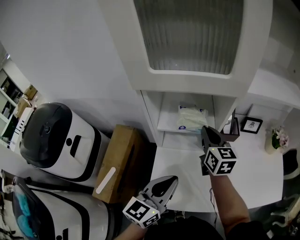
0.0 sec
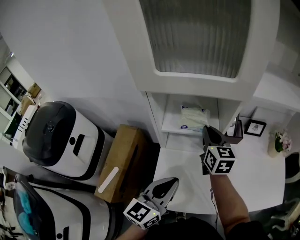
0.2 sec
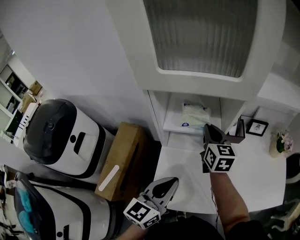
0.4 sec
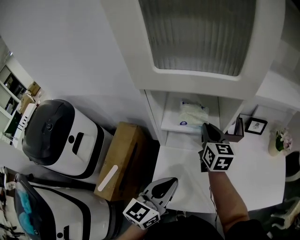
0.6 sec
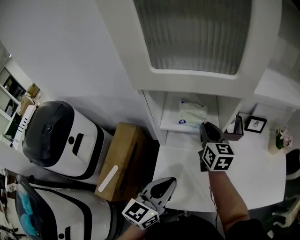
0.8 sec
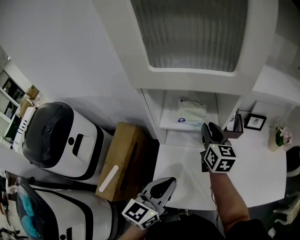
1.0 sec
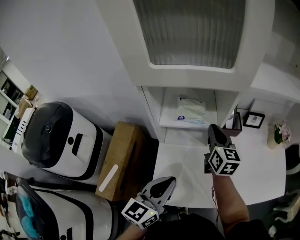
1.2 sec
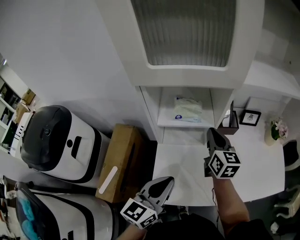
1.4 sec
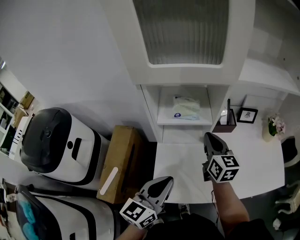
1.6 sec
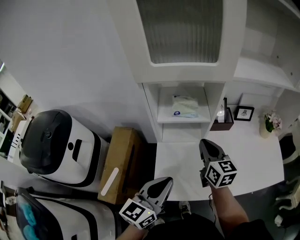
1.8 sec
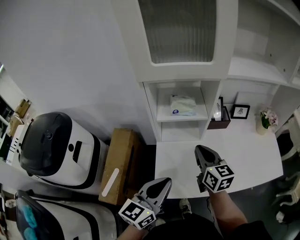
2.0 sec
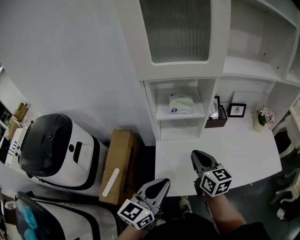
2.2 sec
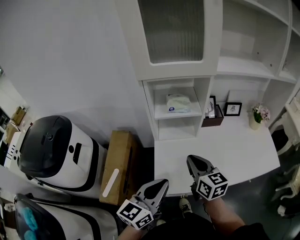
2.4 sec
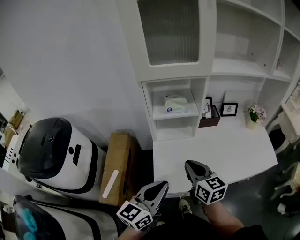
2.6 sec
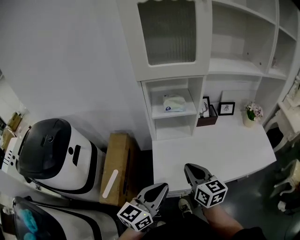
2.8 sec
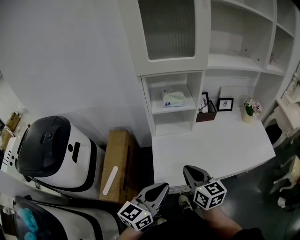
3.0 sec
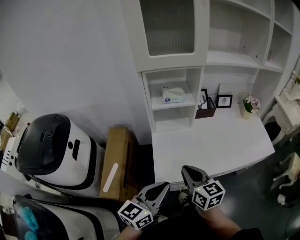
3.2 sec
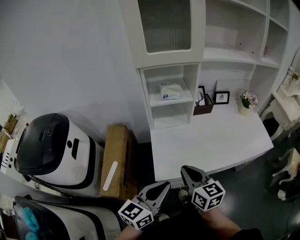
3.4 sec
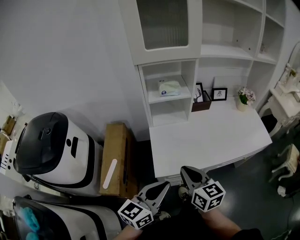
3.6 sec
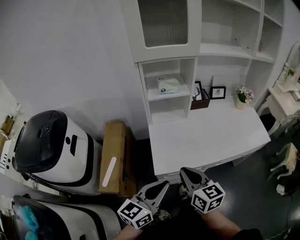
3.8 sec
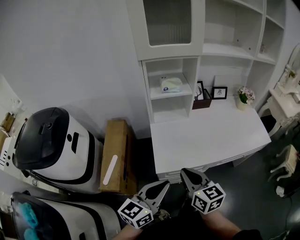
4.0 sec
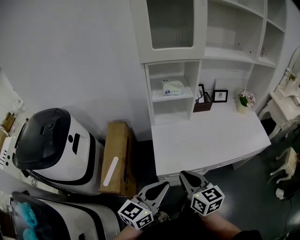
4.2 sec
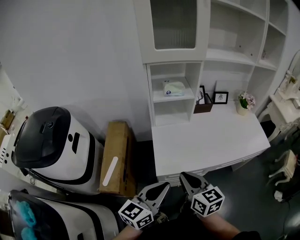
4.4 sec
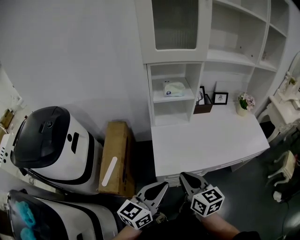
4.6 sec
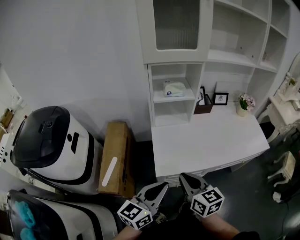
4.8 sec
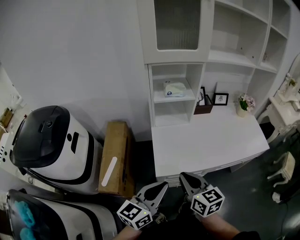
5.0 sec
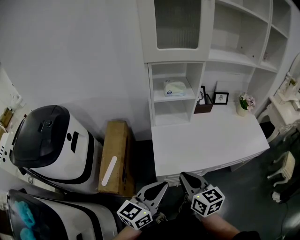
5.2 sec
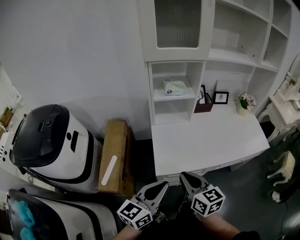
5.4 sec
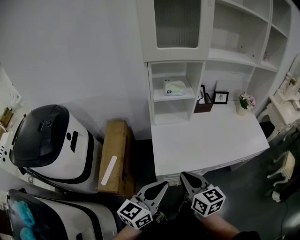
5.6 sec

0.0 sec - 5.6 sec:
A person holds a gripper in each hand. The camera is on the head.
0.0 sec - 1.4 sec: There are only small adjustments of the grippers.
1.4 sec - 2.8 sec: The right gripper moves backward, some 25 cm; the left gripper travels backward by approximately 15 cm.
2.8 sec - 4.2 sec: The two grippers go approximately 10 cm backward.
4.2 sec - 5.6 sec: Both grippers stay about where they are.

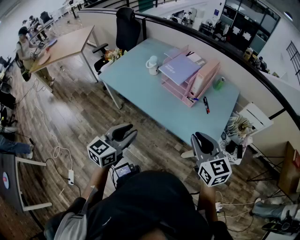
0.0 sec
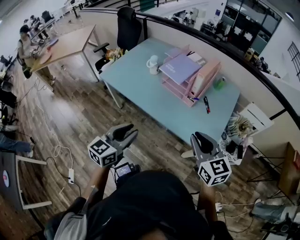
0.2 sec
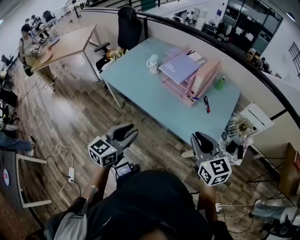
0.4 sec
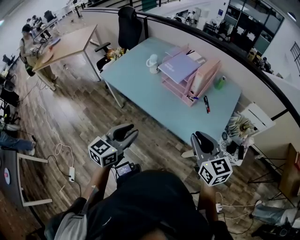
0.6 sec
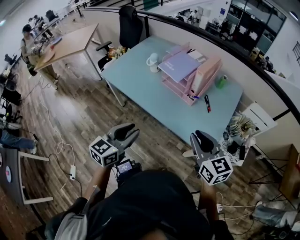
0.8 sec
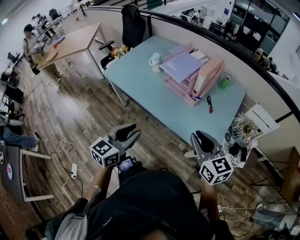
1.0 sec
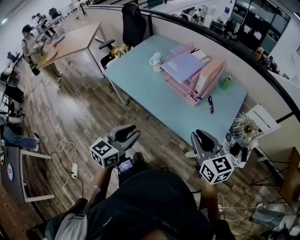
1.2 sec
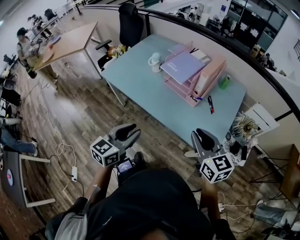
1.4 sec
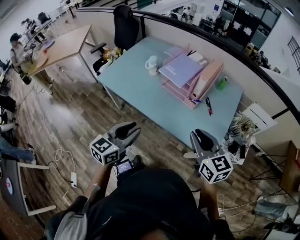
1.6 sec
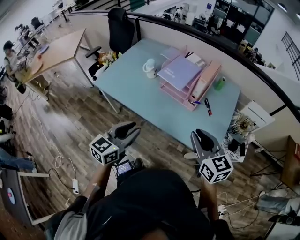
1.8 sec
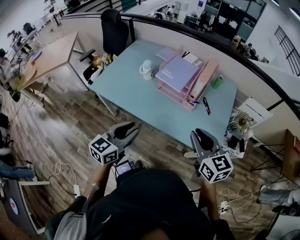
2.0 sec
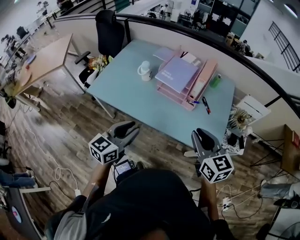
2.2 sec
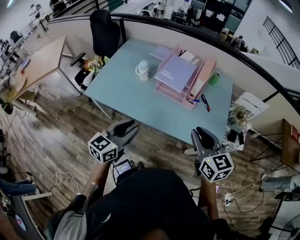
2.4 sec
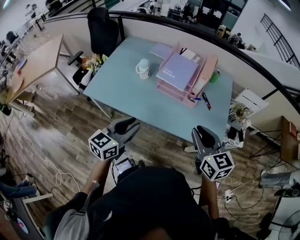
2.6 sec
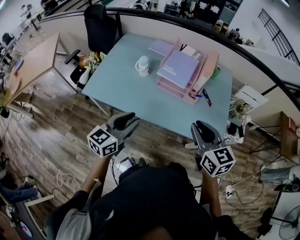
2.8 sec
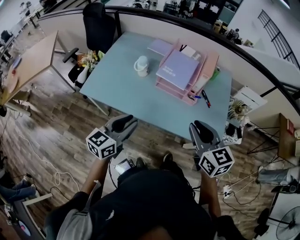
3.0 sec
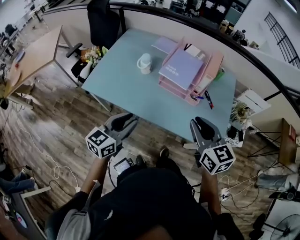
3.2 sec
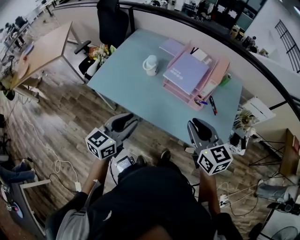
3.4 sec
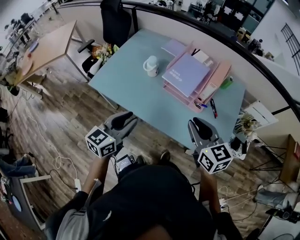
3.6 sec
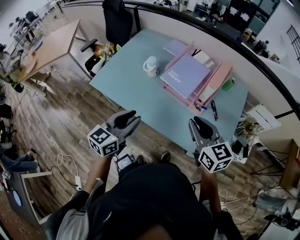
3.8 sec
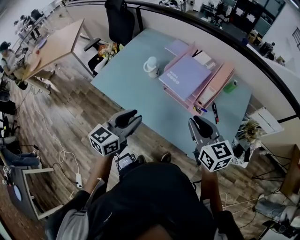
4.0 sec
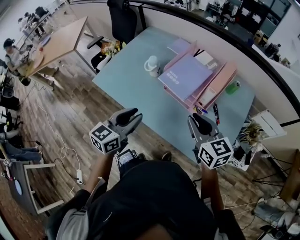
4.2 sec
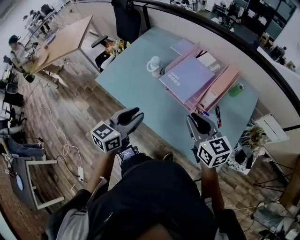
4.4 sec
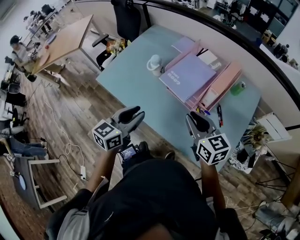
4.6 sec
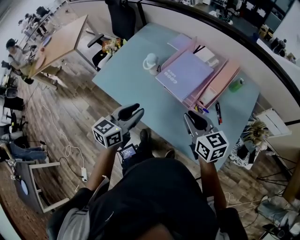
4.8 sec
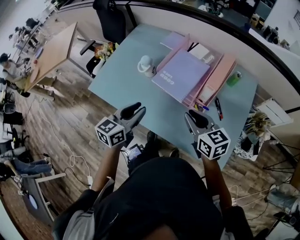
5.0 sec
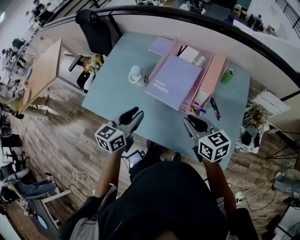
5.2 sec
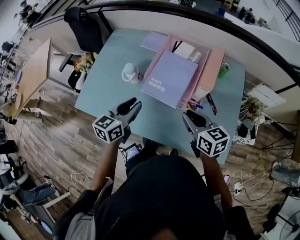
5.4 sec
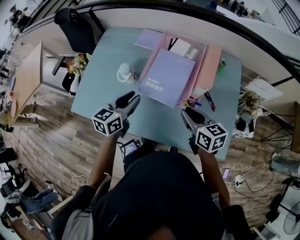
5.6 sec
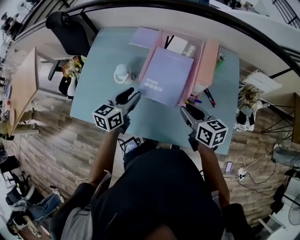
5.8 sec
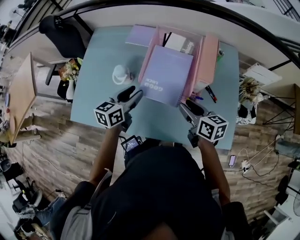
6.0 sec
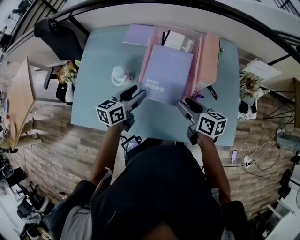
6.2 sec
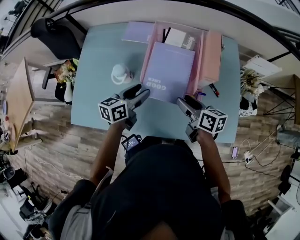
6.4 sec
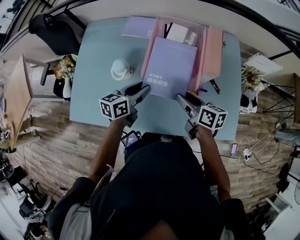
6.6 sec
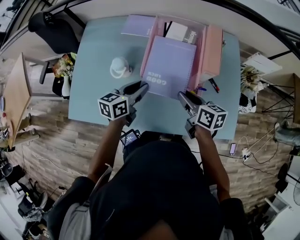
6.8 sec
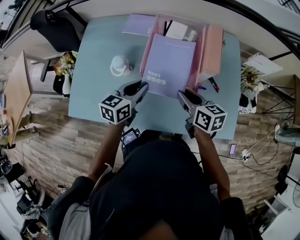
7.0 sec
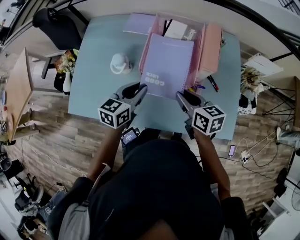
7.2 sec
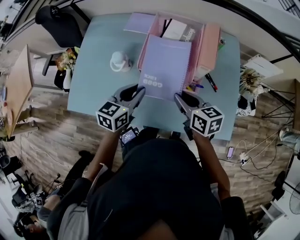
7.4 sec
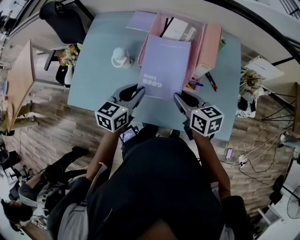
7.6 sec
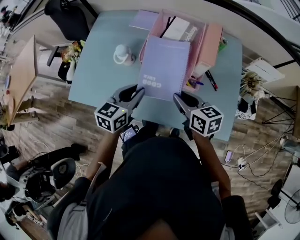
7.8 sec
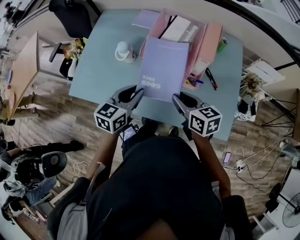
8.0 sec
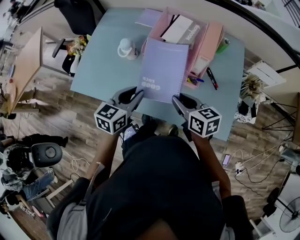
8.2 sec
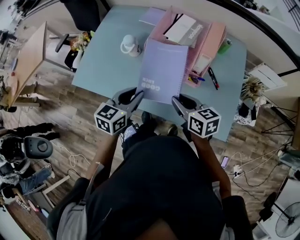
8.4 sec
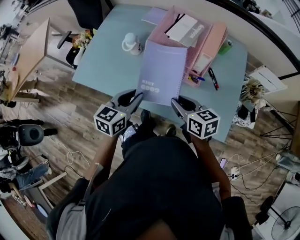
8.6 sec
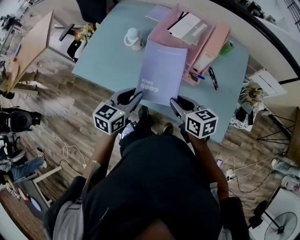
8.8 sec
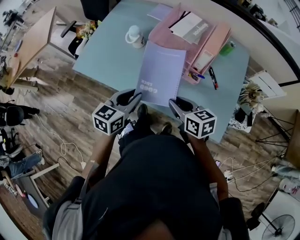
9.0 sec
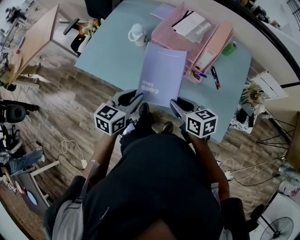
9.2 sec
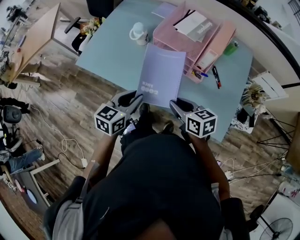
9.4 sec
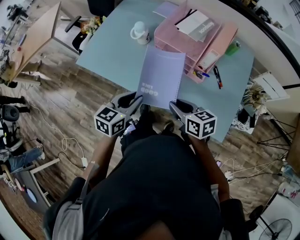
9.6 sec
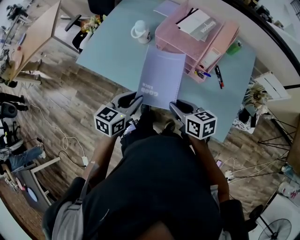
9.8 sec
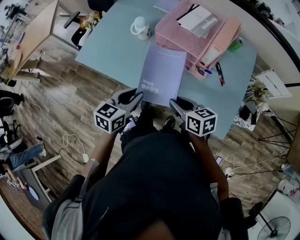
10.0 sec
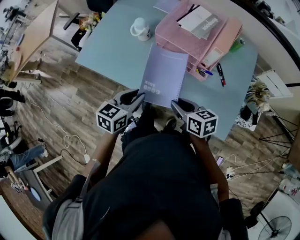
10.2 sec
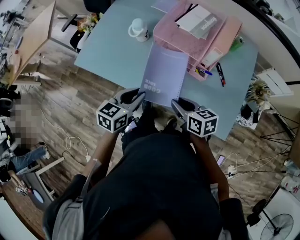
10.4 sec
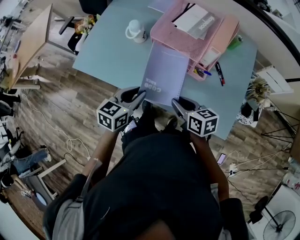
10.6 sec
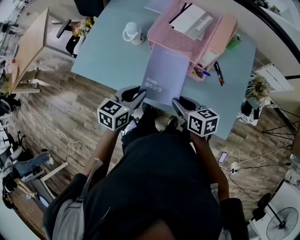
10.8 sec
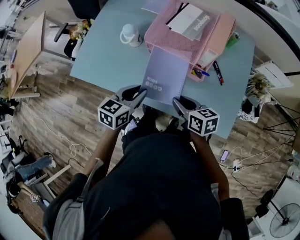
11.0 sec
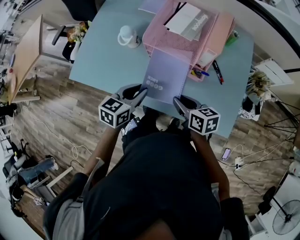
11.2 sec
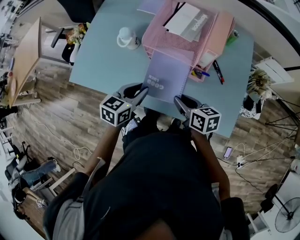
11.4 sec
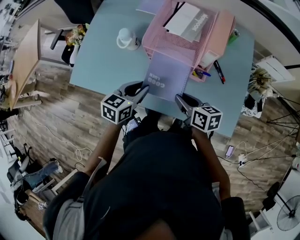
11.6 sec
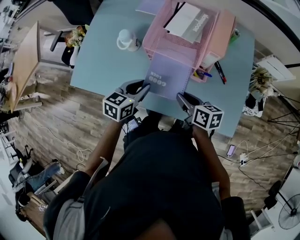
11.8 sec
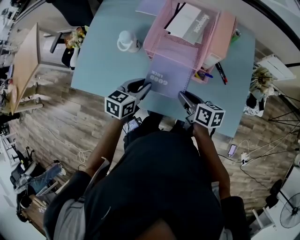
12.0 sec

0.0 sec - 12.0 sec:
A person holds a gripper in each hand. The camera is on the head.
0.0 sec - 1.6 sec: Both grippers travel together forward, some 5 cm.
1.6 sec - 3.0 sec: The left gripper goes some 15 cm to the left and forward. Meanwhile the right gripper heads to the left, covering roughly 10 cm.
3.0 sec - 4.4 sec: The right gripper shifts some 15 cm forward and to the right, and rotates approximately 20 degrees. Meanwhile the left gripper is displaced to the right and forward by some 10 cm.
4.4 sec - 6.0 sec: The right gripper travels downward and forward by approximately 15 cm, rotates about 40 degrees, and opens up. The left gripper travels forward and downward by roughly 25 cm, and changes its angle by some 20 degrees.
6.0 sec - 7.6 sec: The left gripper shifts some 5 cm backward.
7.6 sec - 9.0 sec: The two grippers go roughly 15 cm backward.
9.0 sec - 10.4 sec: There are only small adjustments of the grippers.
10.4 sec - 12.0 sec: Both grippers move forward, roughly 10 cm. The right gripper changes its angle by approximately 20 degrees.

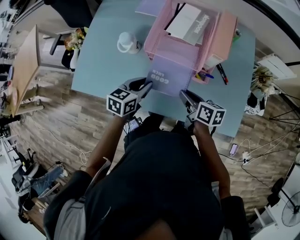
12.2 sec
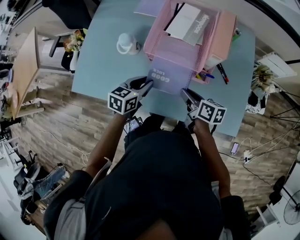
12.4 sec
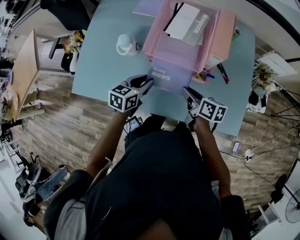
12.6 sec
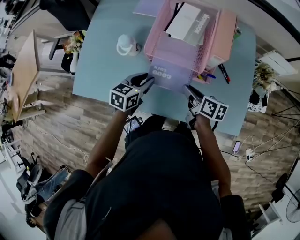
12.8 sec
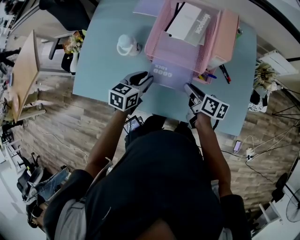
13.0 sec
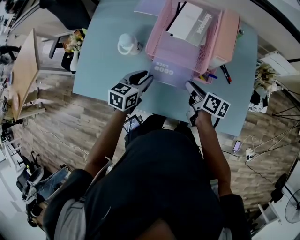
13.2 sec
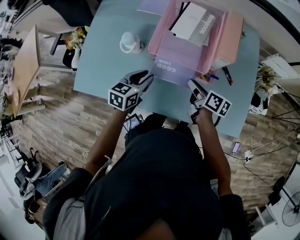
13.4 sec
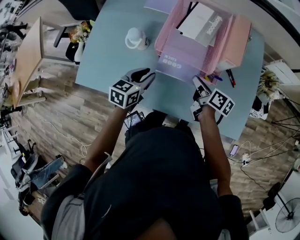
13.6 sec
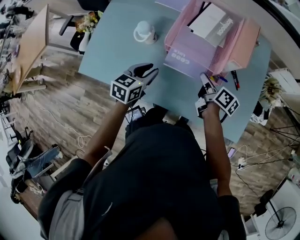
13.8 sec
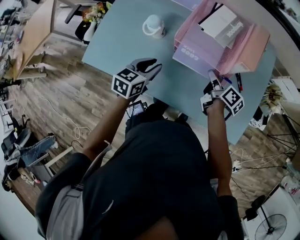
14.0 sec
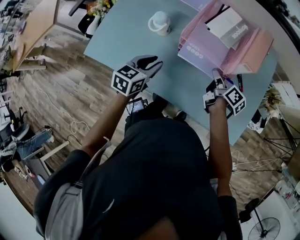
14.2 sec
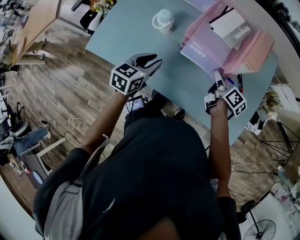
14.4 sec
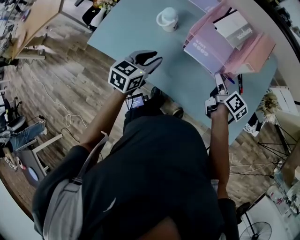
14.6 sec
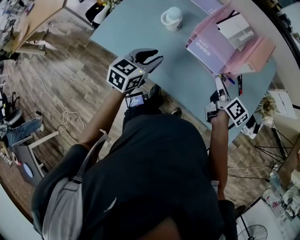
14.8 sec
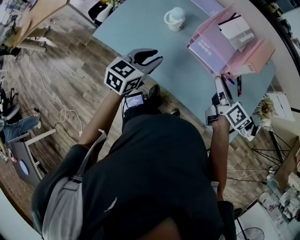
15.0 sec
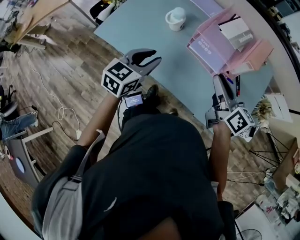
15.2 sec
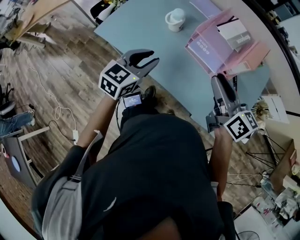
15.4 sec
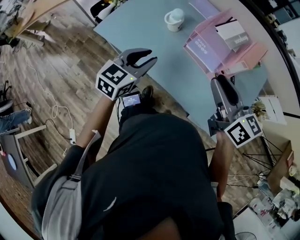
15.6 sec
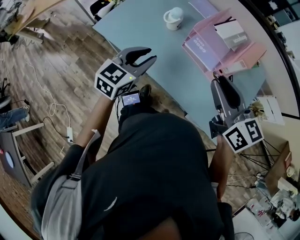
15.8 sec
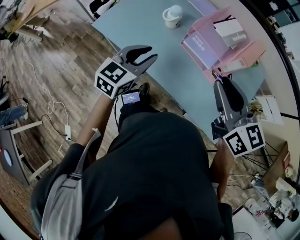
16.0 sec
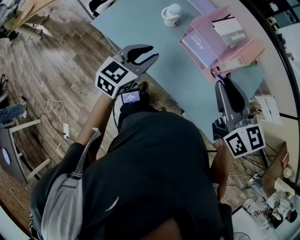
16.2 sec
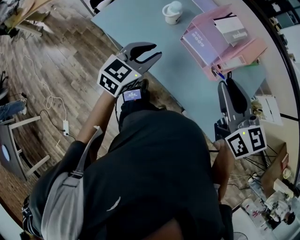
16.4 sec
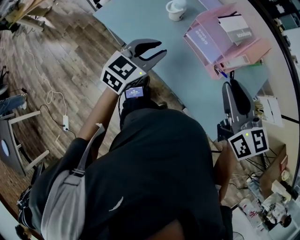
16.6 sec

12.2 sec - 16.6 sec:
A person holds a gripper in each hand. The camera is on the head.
12.2 sec - 13.6 sec: The right gripper shifts roughly 5 cm forward.
13.6 sec - 15.2 sec: The left gripper shifts some 20 cm backward, upward and to the left. Meanwhile the right gripper goes about 20 cm upward and backward, and turns by some 40 degrees.
15.2 sec - 16.6 sec: The left gripper goes about 5 cm to the right. The right gripper heads upward and backward, covering about 10 cm, and changes its angle by about 30 degrees.

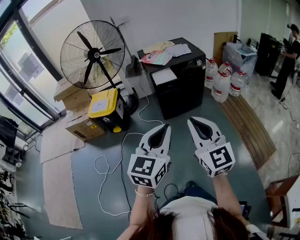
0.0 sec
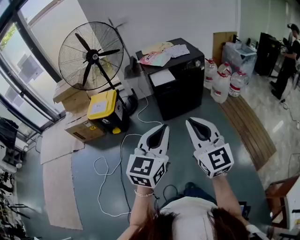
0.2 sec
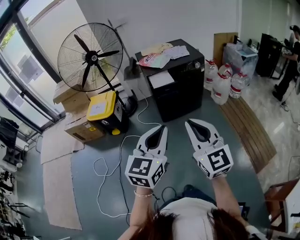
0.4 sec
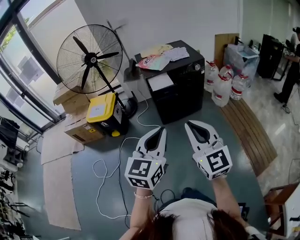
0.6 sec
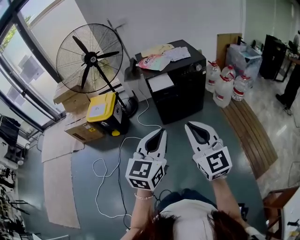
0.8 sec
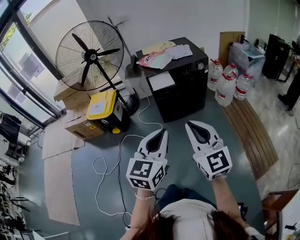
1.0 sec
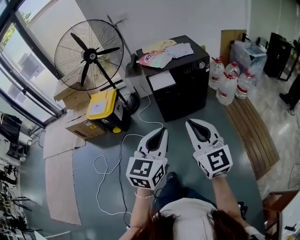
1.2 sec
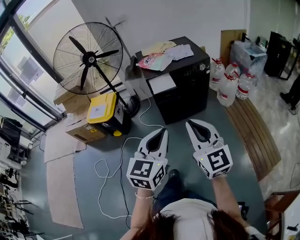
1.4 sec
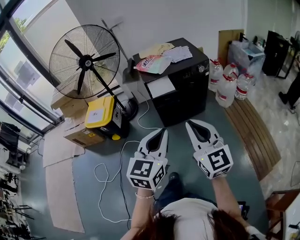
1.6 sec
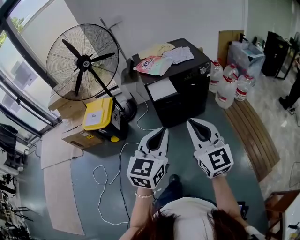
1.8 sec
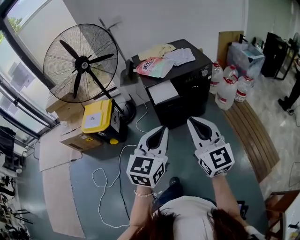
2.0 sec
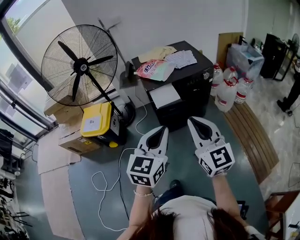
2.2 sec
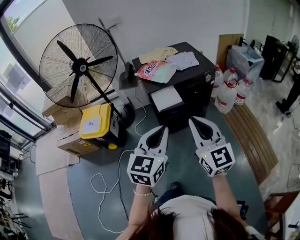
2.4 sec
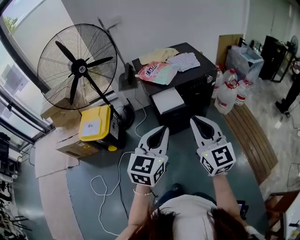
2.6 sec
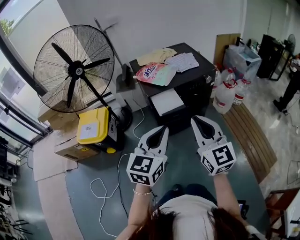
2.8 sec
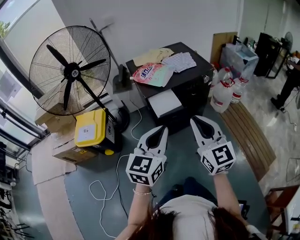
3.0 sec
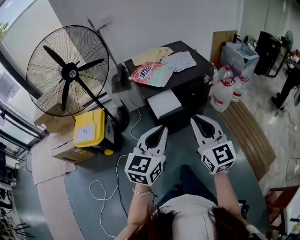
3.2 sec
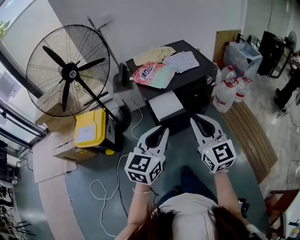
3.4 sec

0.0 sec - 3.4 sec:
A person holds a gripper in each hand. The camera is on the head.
0.0 sec - 1.6 sec: Both grippers move forward, approximately 15 cm.
1.6 sec - 3.4 sec: The grippers both shift forward by about 25 cm.
